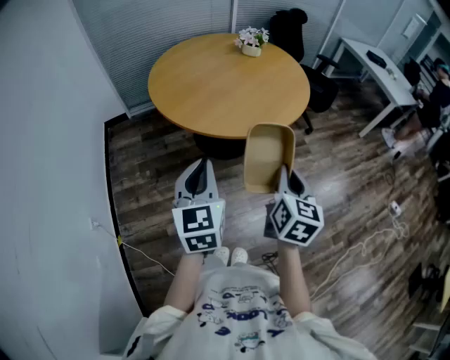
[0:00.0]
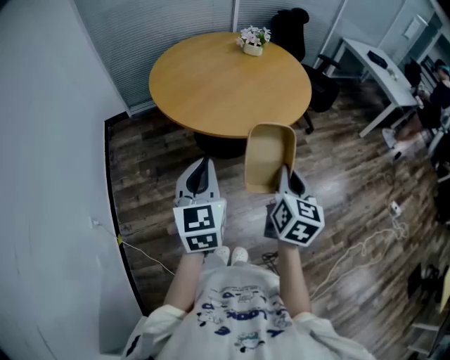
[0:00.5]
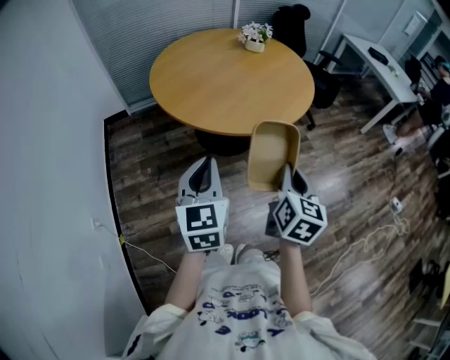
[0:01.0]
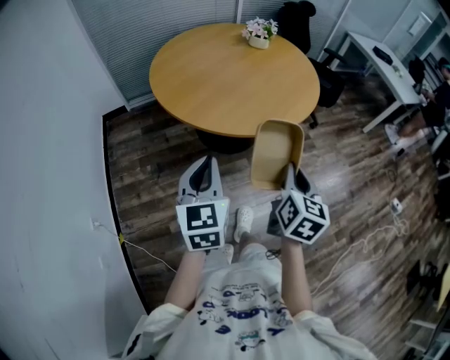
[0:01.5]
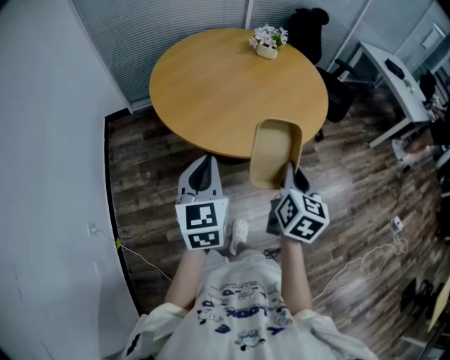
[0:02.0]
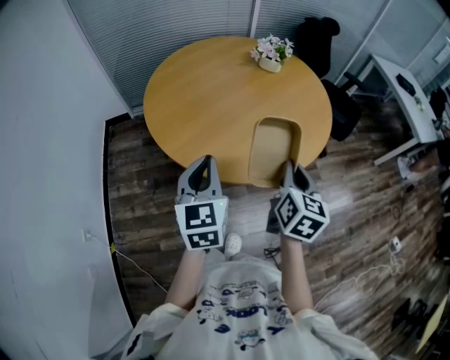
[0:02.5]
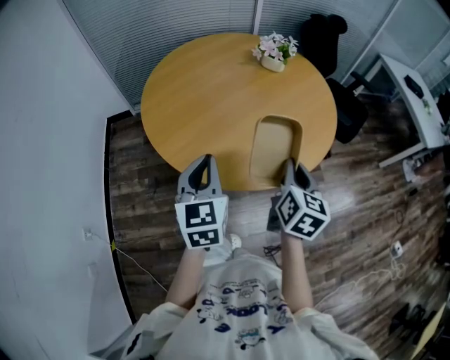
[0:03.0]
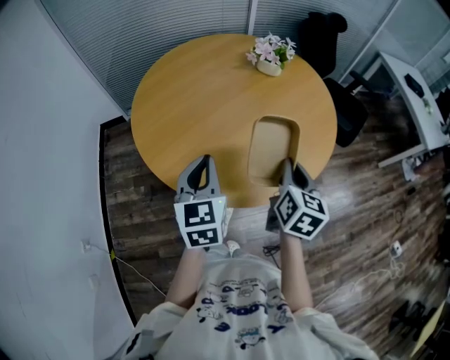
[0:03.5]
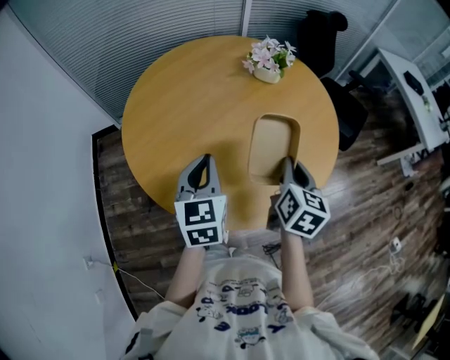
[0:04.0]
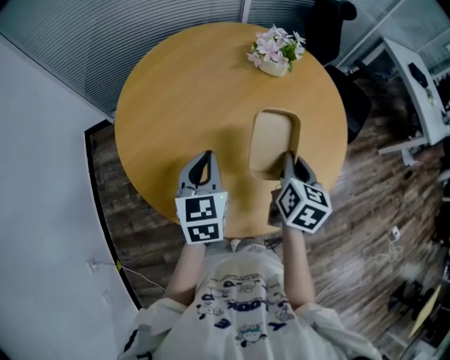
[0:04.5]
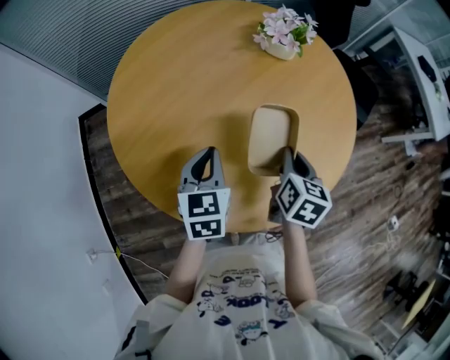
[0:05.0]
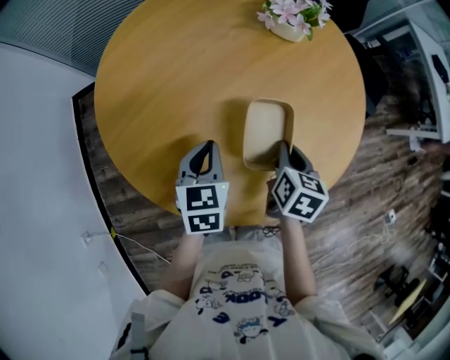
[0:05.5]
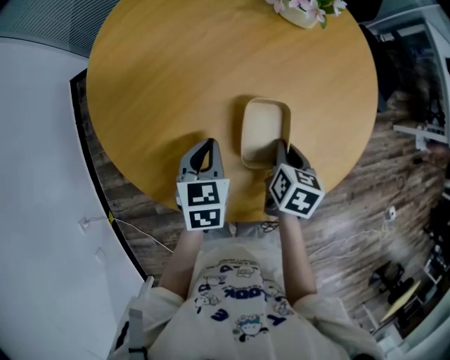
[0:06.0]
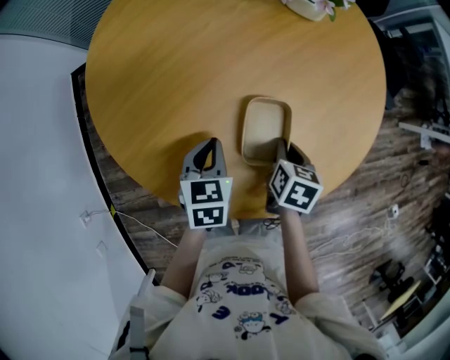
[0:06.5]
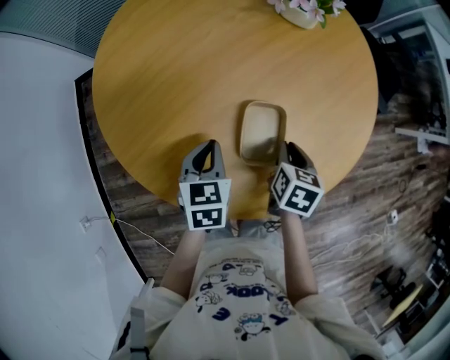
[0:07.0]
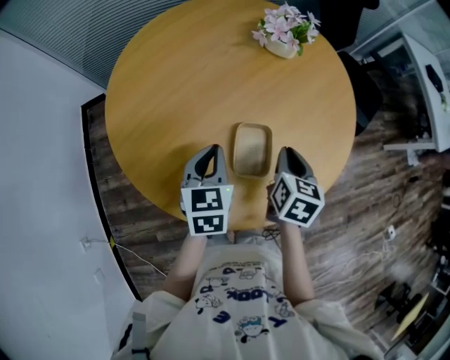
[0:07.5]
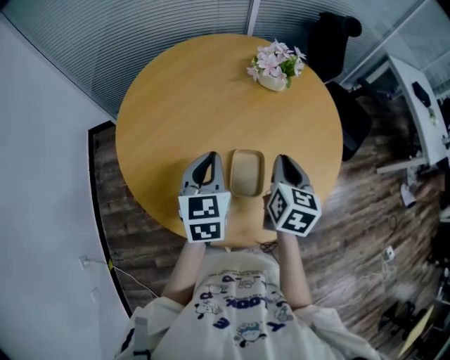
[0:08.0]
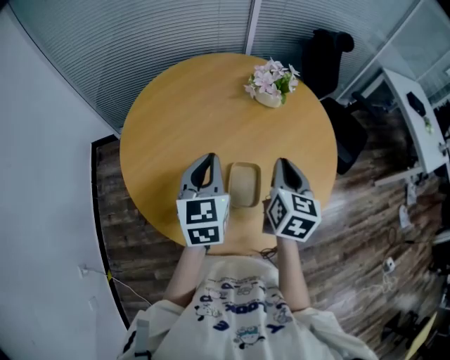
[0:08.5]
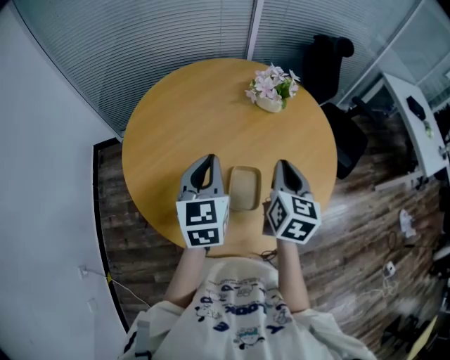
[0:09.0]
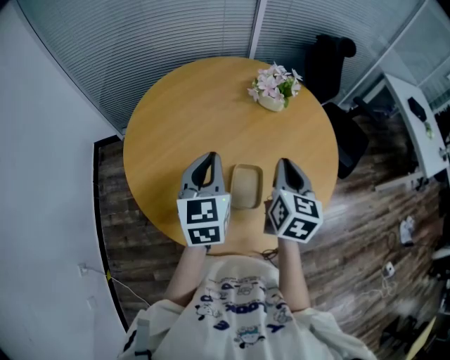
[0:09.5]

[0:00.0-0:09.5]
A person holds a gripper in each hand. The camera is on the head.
0:00.0 to 0:02.0: Both grippers travel together forward, about 15 cm.
0:02.0 to 0:04.0: The grippers both shift forward by about 30 cm.
0:04.0 to 0:05.5: Both grippers travel together downward and forward, some 15 cm. The right gripper swivels approximately 20 degrees.
0:05.5 to 0:07.5: The right gripper travels downward and back again, some 10 cm each way.
0:07.5 to 0:09.5: The grippers both shift upward by some 15 cm.

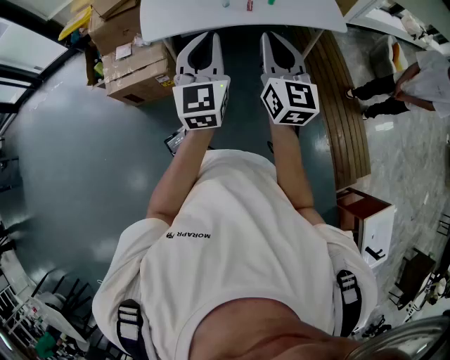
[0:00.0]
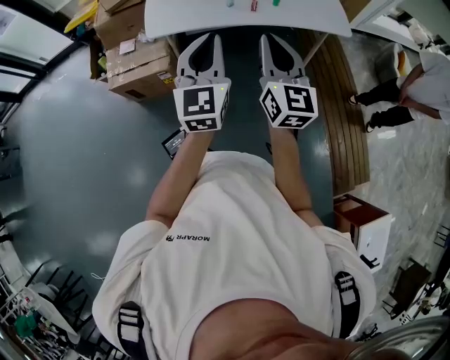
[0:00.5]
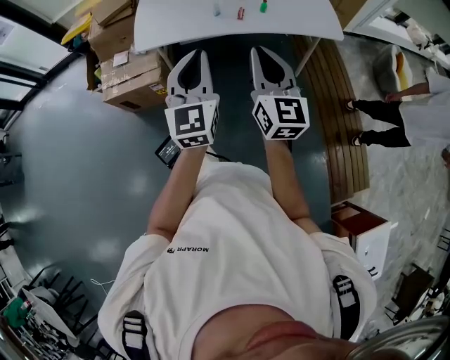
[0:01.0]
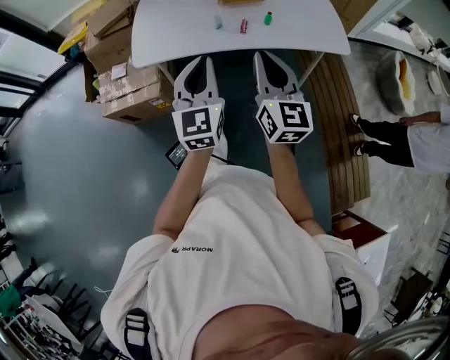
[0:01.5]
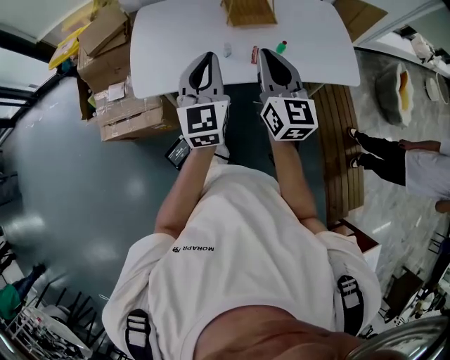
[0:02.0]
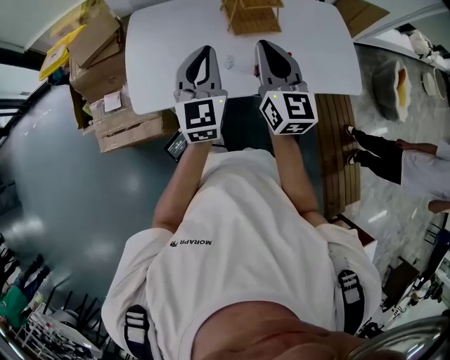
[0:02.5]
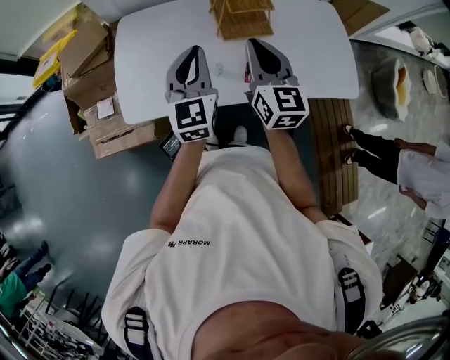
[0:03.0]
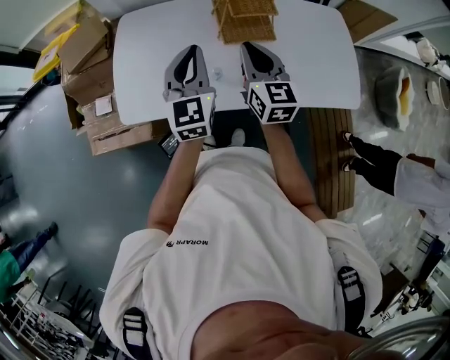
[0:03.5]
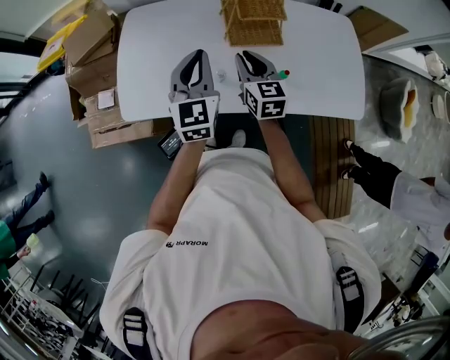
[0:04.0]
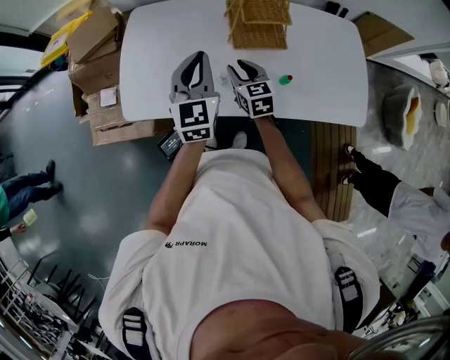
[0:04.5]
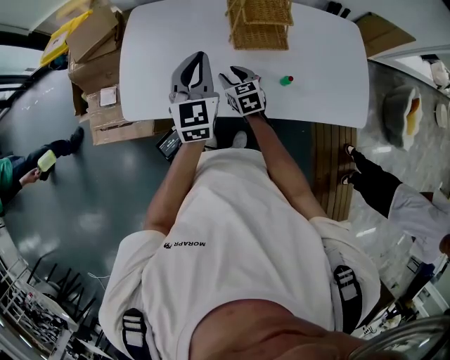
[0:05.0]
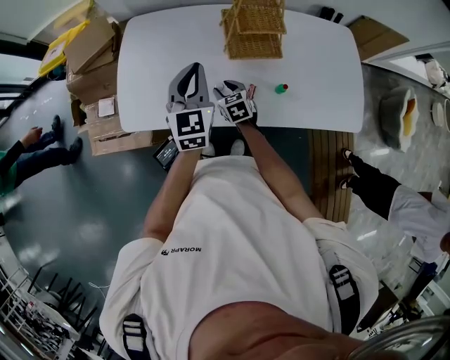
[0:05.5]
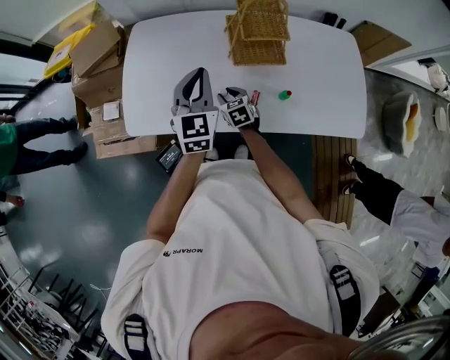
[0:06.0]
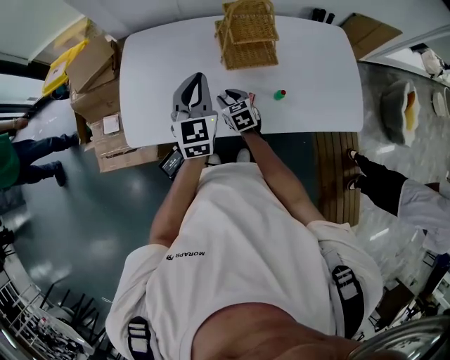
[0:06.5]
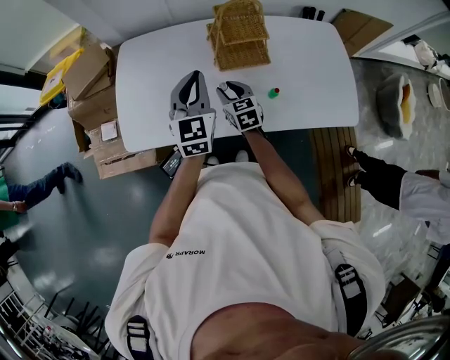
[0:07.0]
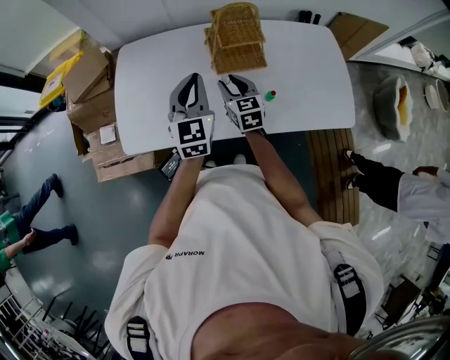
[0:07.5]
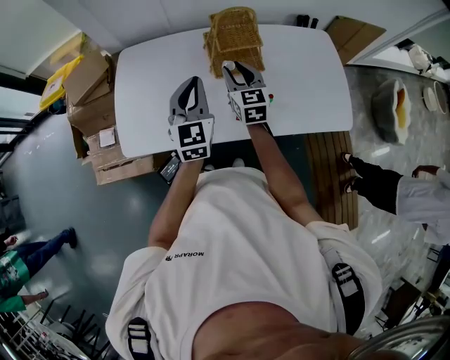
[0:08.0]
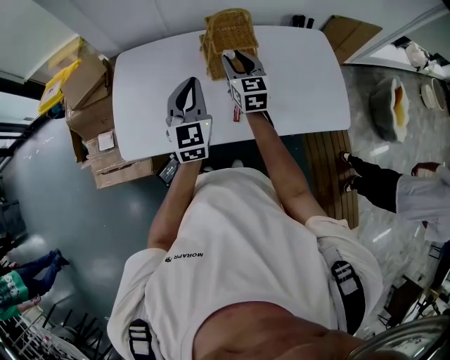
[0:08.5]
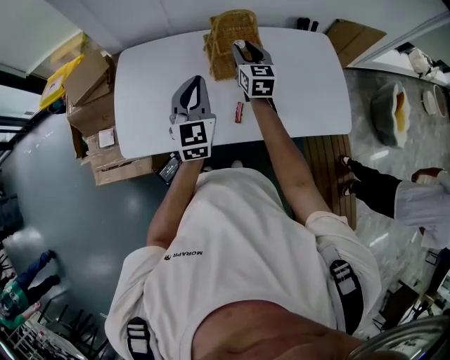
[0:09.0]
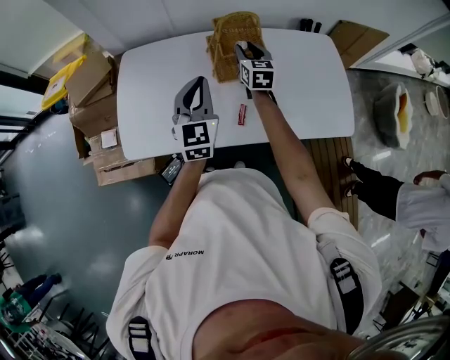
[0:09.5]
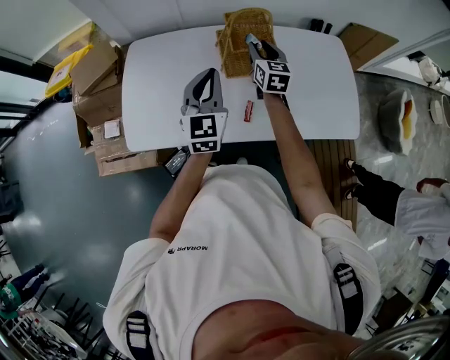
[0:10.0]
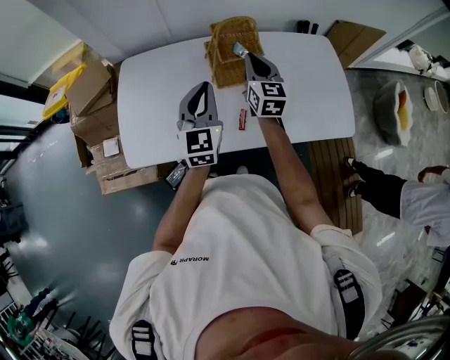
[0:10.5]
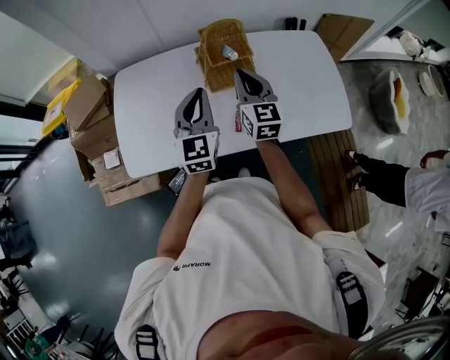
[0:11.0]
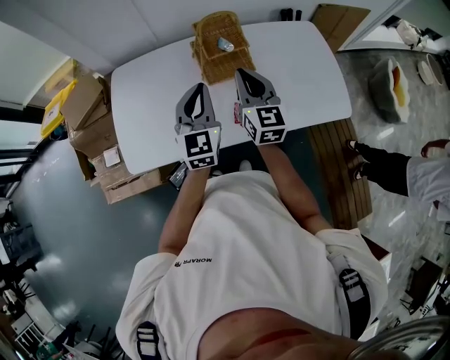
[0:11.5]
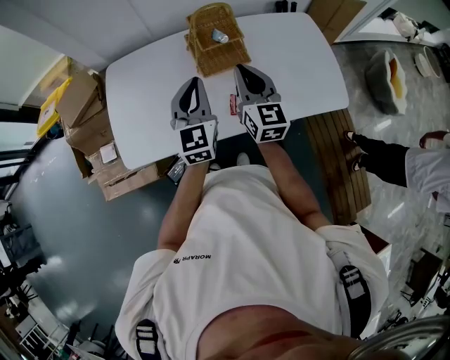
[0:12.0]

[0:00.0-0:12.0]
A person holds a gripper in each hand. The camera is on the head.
0:00.0 to 0:02.0: Both grippers travel together forward, some 30 cm.
0:02.0 to 0:04.0: The left gripper heads forward, covering about 20 cm. Meanwhile the right gripper moves forward and downward, some 30 cm, and turns by some 20 degrees.
0:04.0 to 0:06.0: The right gripper heads downward, covering approximately 20 cm, rotates approximately 30 degrees, and opens up.
0:06.0 to 0:08.0: The left gripper ends up approximately 5 cm from where it was; the right gripper travels upward and to the right by about 25 cm, and turns by some 30 degrees.
0:08.0 to 0:10.0: The right gripper moves forward and to the right, roughly 10 cm.
0:10.0 to 0:12.0: The right gripper heads backward and upward, covering some 20 cm, and closes.

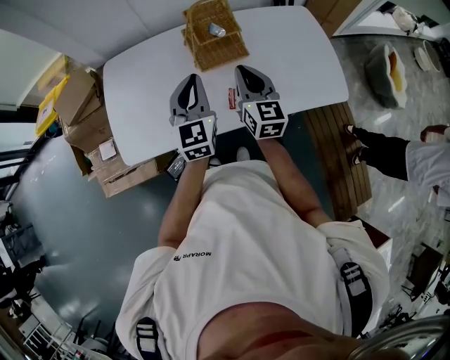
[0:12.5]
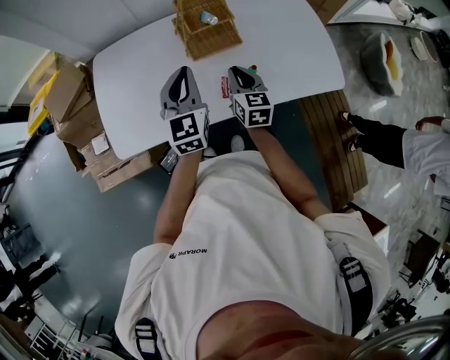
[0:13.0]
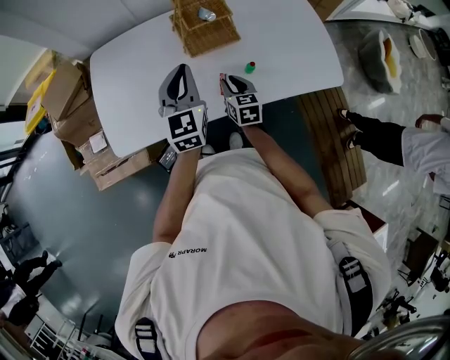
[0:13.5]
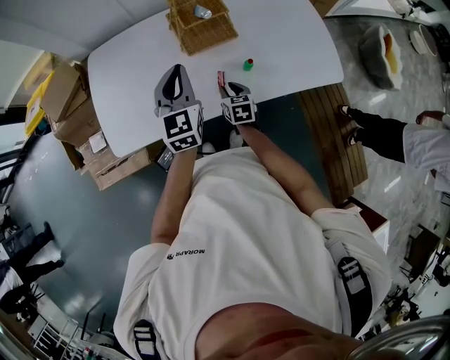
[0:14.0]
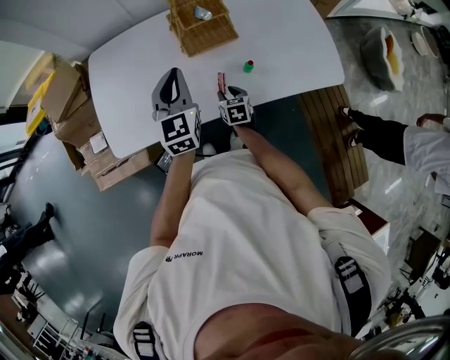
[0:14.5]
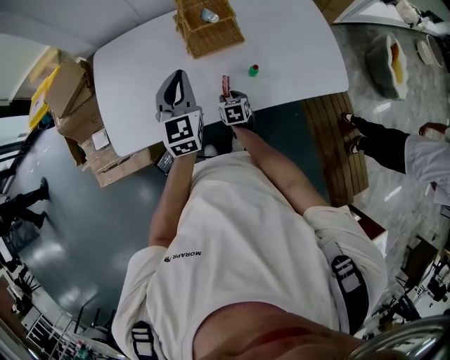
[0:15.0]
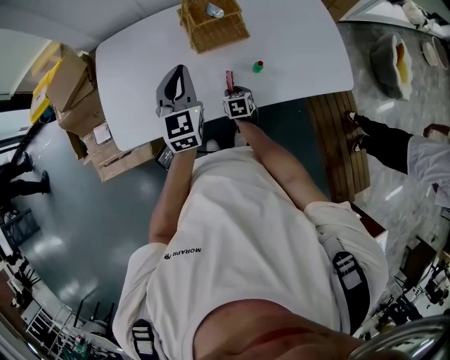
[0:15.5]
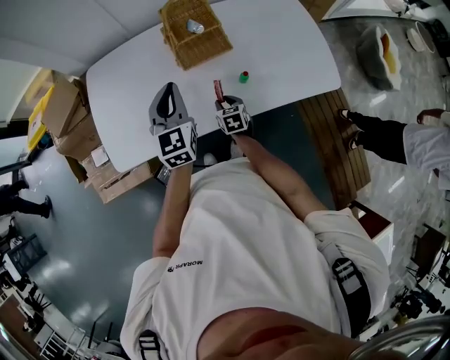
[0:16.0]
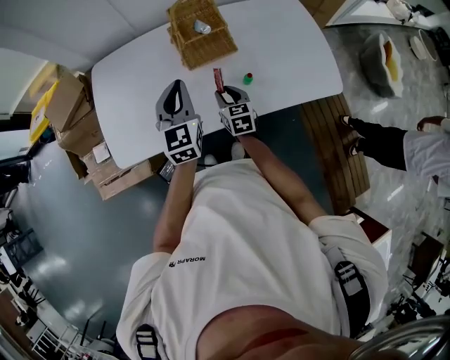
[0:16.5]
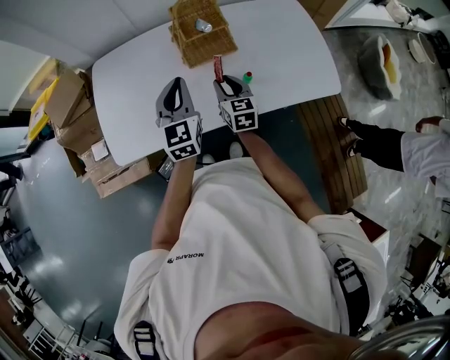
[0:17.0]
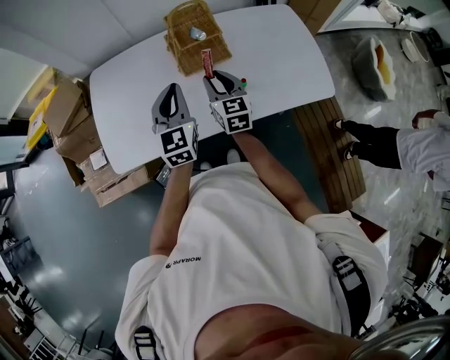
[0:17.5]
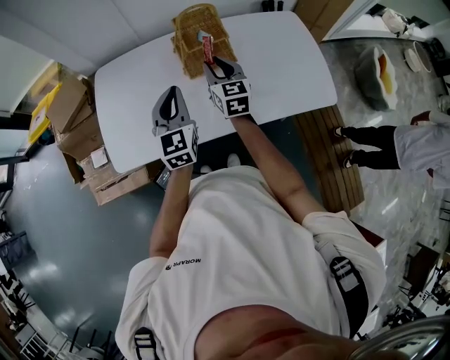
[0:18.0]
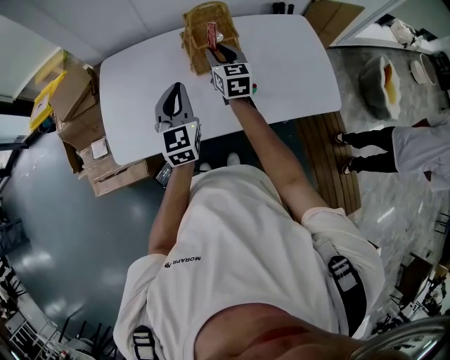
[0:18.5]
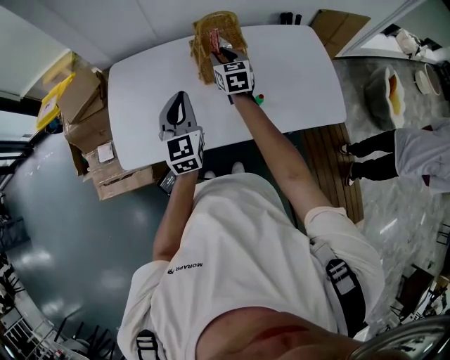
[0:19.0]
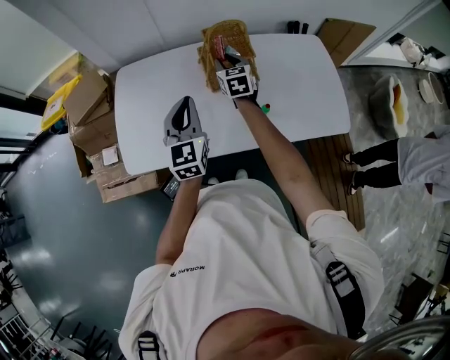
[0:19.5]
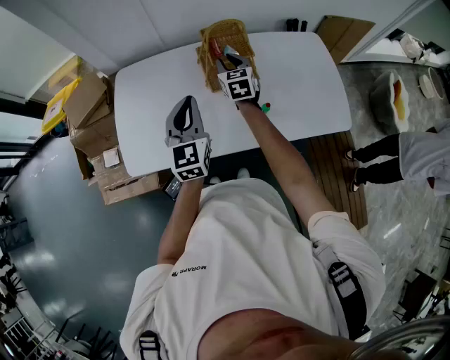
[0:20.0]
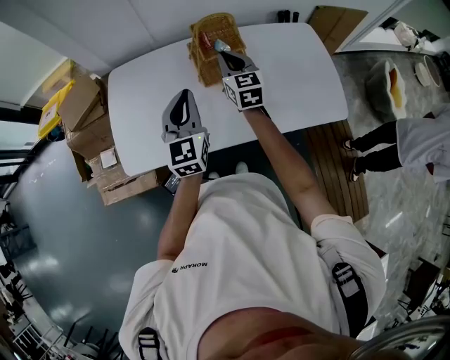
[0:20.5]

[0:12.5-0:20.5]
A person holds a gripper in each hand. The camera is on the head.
0:12.5 to 0:14.5: The right gripper heads downward, covering some 30 cm, points its fingers approximately 40 degrees further downward, and opens its fingers.
0:14.5 to 0:16.5: The right gripper travels upward by some 10 cm.
0:16.5 to 0:18.5: The right gripper shifts about 20 cm upward and forward.
0:18.5 to 0:20.5: The right gripper closes its fingers.
